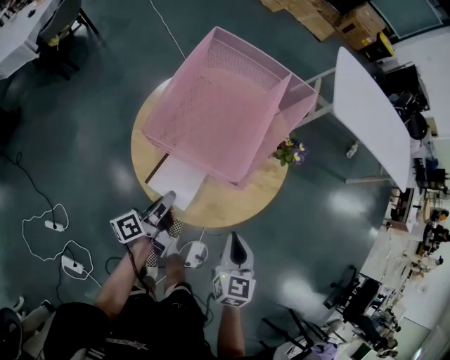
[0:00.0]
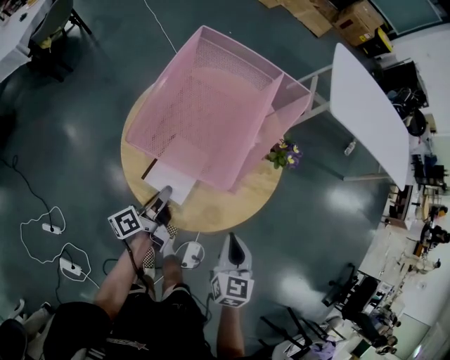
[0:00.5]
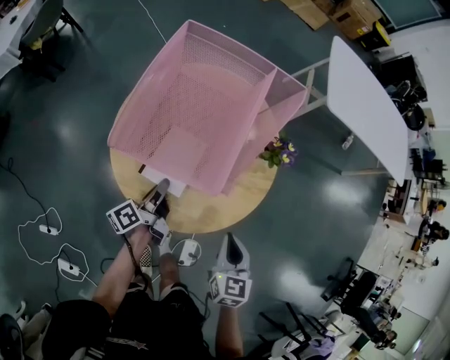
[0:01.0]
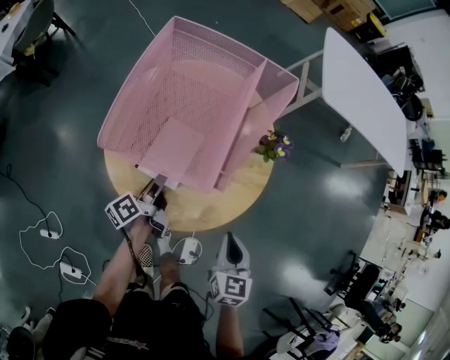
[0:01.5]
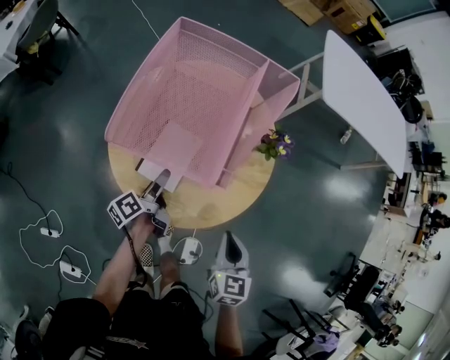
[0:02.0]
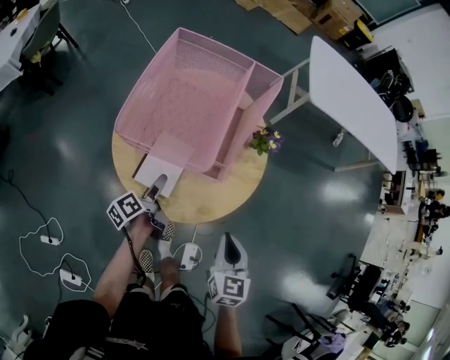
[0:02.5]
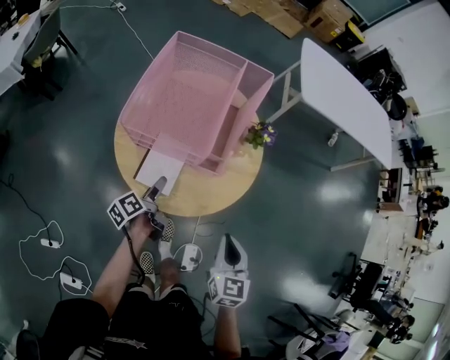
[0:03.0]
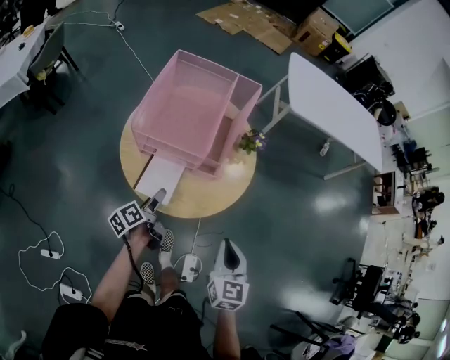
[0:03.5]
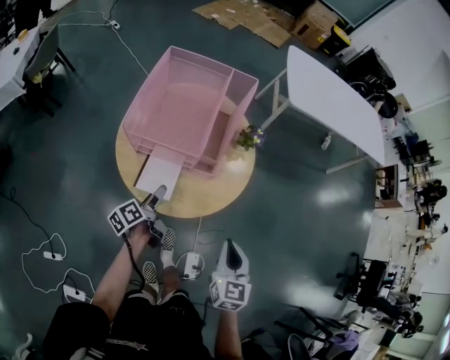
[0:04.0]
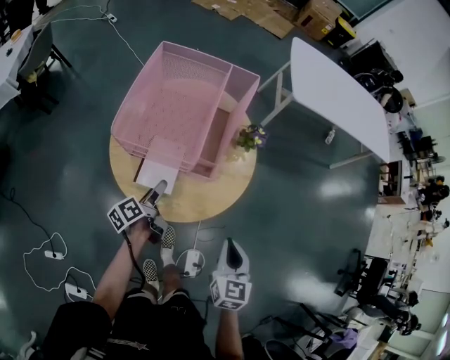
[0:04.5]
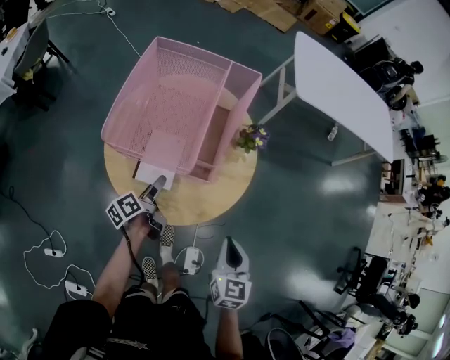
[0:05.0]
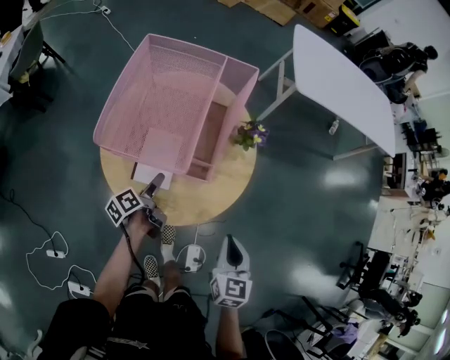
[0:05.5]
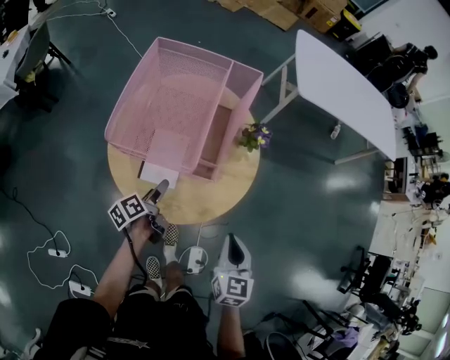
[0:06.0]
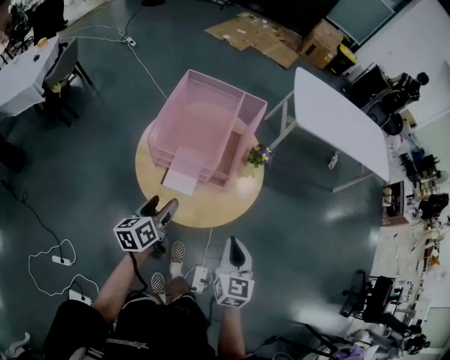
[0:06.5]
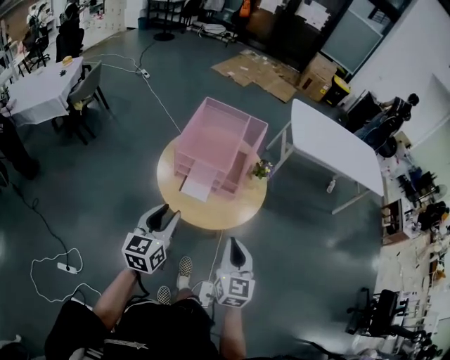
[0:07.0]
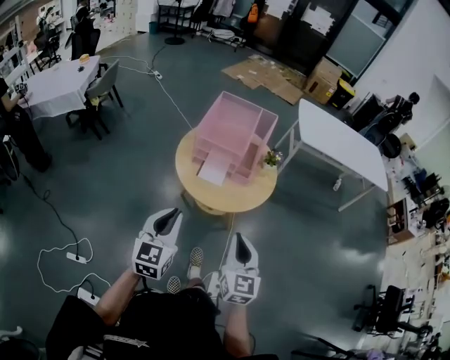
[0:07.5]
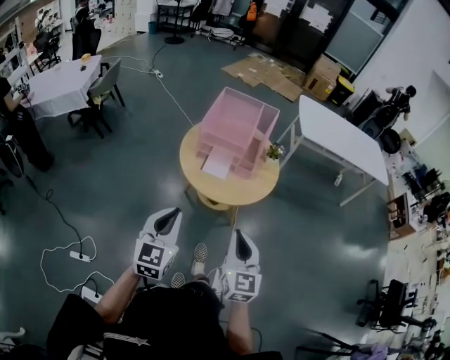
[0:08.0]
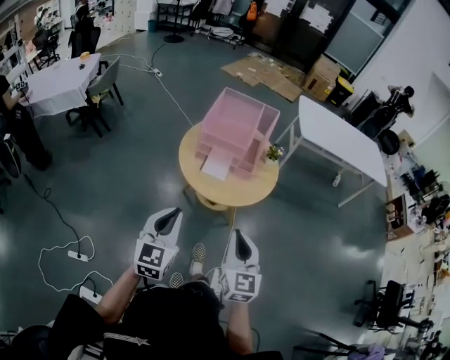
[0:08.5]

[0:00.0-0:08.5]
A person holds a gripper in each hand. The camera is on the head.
0:00.0 to 0:02.0: The left gripper goes approximately 10 cm downward and forward, and opens its fingers.
0:02.0 to 0:04.0: The two grippers go roughly 10 cm backward and upward.
0:04.0 to 0:06.5: The right gripper ends up approximately 5 cm from where it was. The left gripper moves upward, about 10 cm, and changes its angle by about 30 degrees.
0:06.5 to 0:08.5: The right gripper travels backward, upward and to the left by approximately 25 cm. Meanwhile the left gripper shifts approximately 30 cm backward and upward, rolls clockwise, seen from behind, by some 40 degrees, and closes.

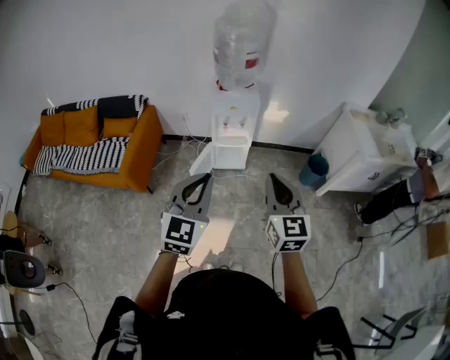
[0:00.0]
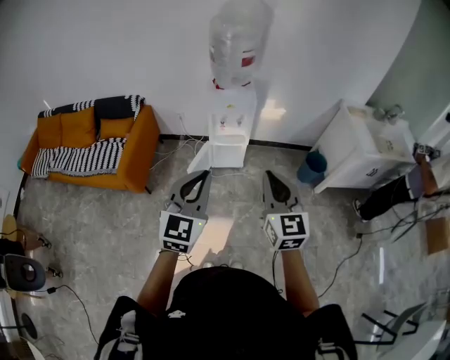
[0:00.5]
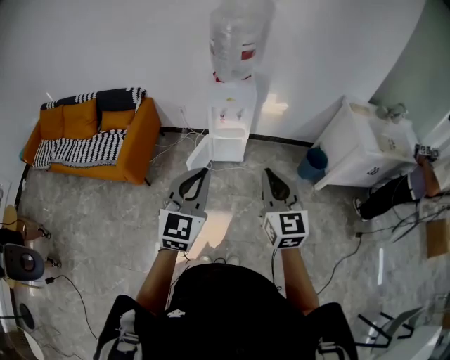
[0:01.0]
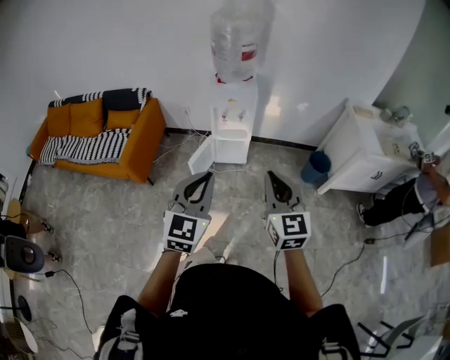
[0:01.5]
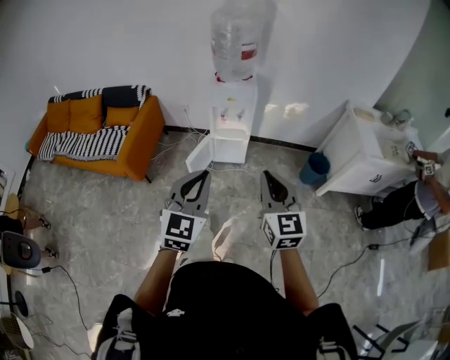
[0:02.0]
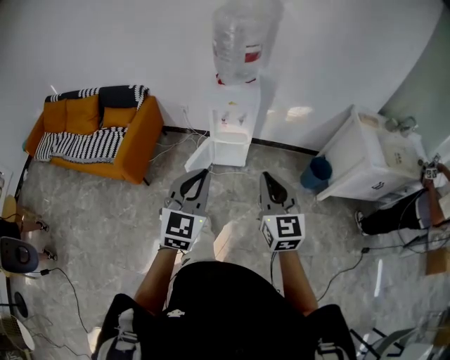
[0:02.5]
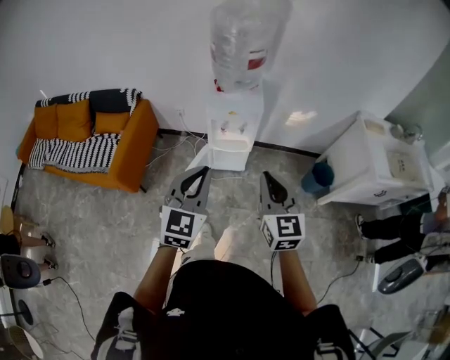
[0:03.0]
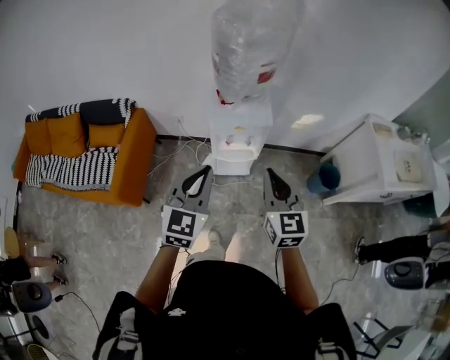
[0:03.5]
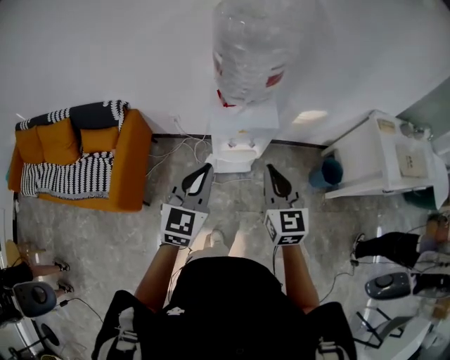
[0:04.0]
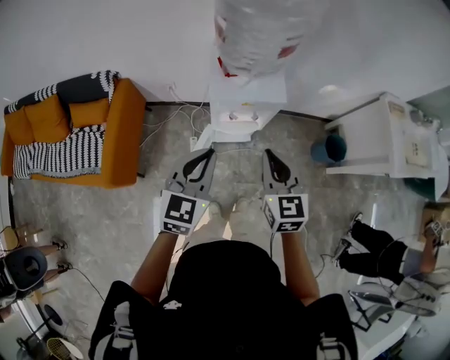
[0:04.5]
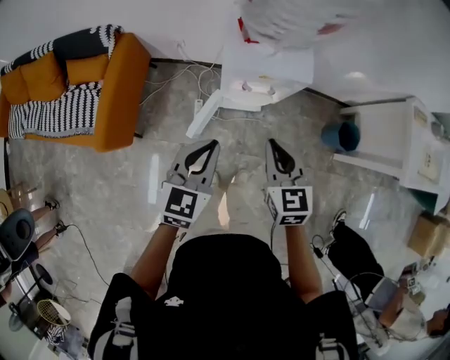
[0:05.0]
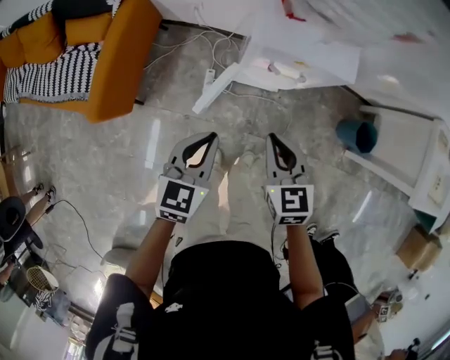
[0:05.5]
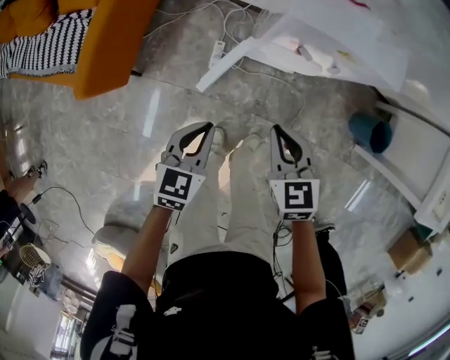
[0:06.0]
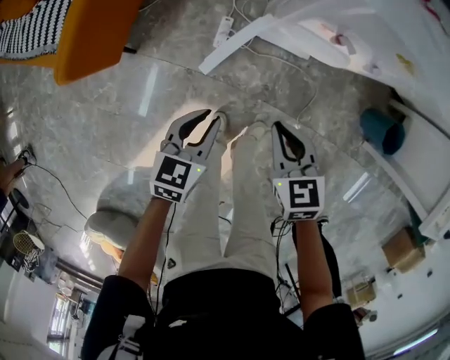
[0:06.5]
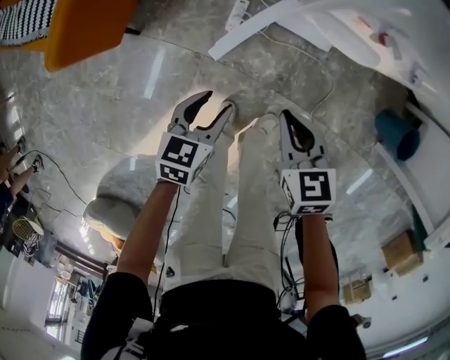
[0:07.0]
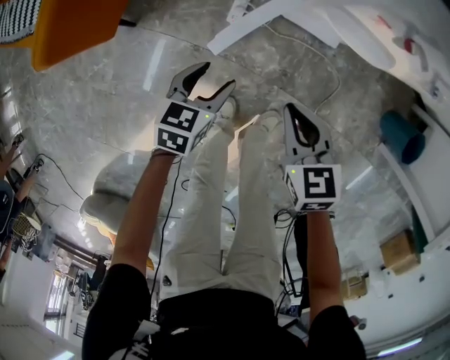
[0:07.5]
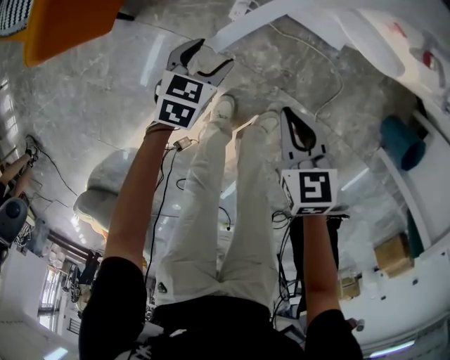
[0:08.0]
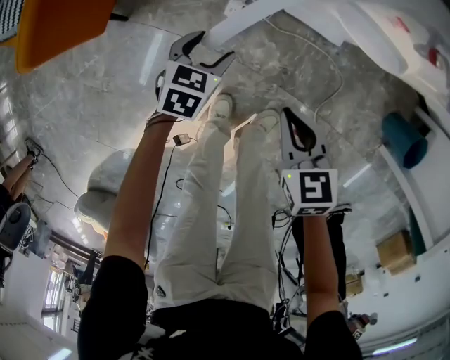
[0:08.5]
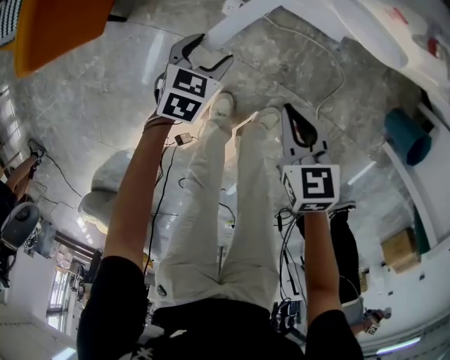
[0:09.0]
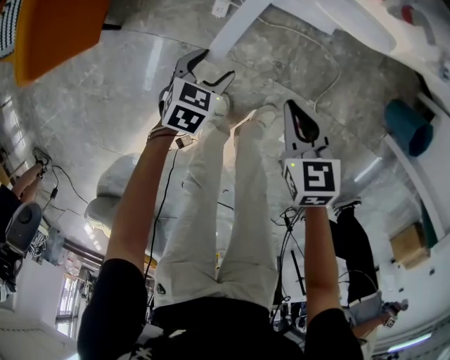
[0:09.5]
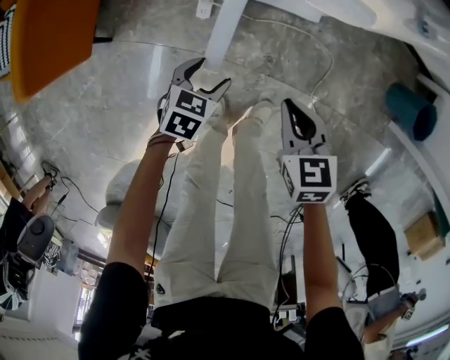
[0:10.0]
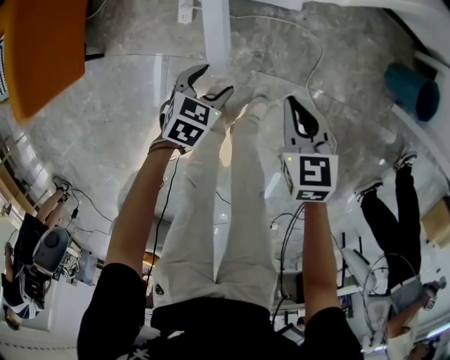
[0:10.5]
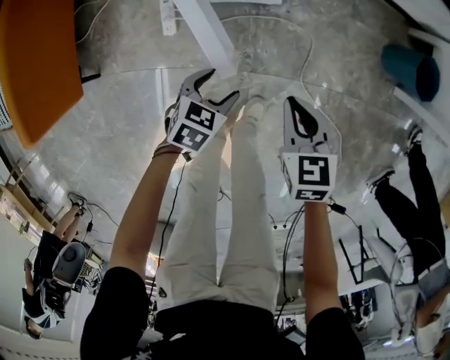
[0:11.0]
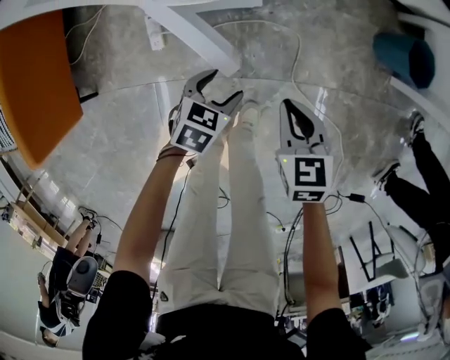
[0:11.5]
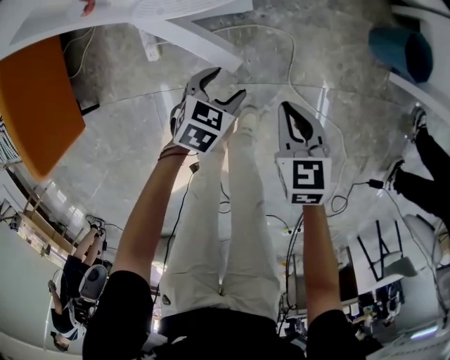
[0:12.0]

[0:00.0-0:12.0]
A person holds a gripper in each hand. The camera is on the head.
0:00.0 to 0:02.0: The right gripper changes place by approximately 5 cm. The left gripper moves to the right, about 5 cm.
0:02.0 to 0:04.0: The two grippers go some 40 cm forward.
0:04.0 to 0:06.0: The two grippers go some 35 cm downward. The right gripper rotates some 40 degrees. The left gripper turns by roughly 30 degrees.
0:06.0 to 0:08.0: Both grippers move downward, about 25 cm. The left gripper opens its fingers.
0:08.0 to 0:10.0: The right gripper shifts about 10 cm to the right; the left gripper travels to the right and backward by approximately 10 cm.
0:10.0 to 0:12.0: The right gripper is displaced to the right by about 15 cm. The left gripper shifts some 20 cm to the right and forward, and turns by roughly 20 degrees.

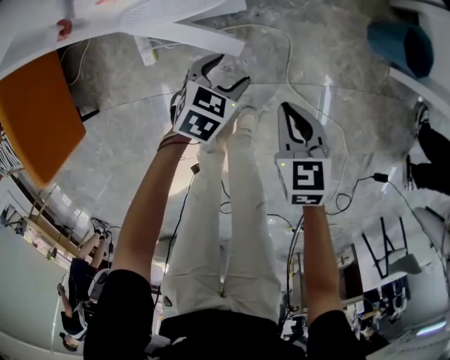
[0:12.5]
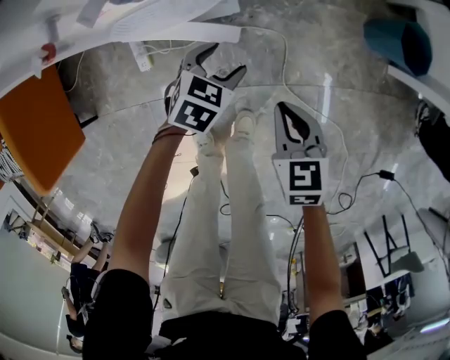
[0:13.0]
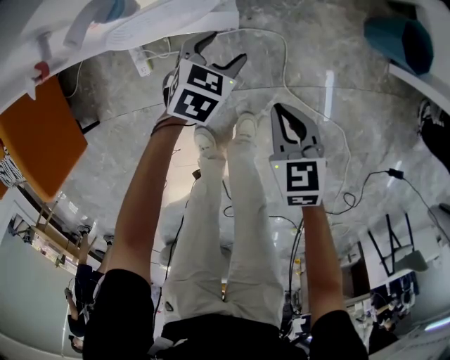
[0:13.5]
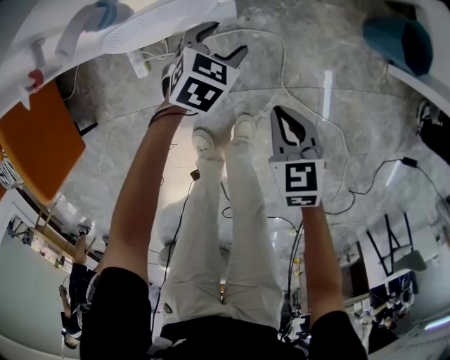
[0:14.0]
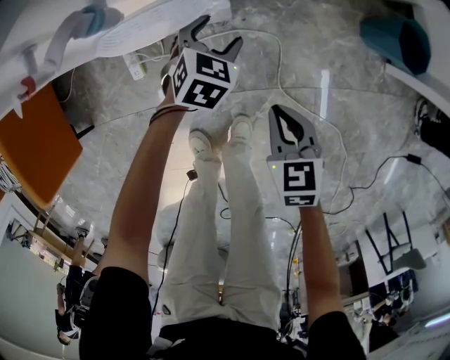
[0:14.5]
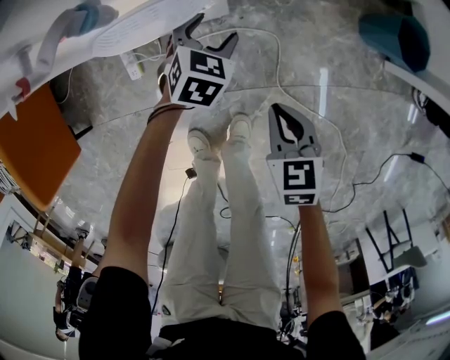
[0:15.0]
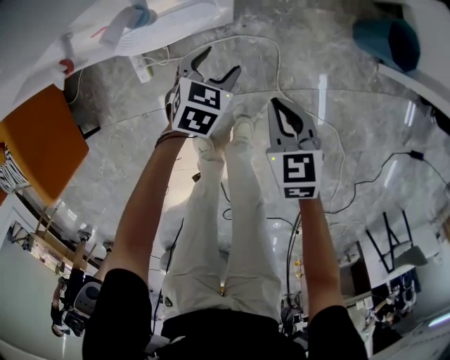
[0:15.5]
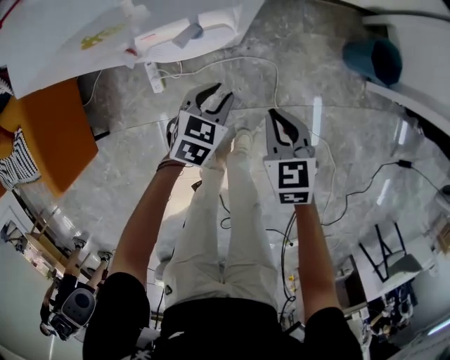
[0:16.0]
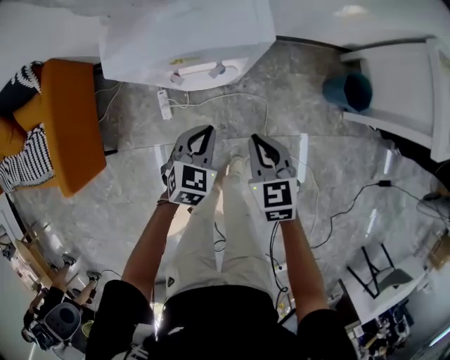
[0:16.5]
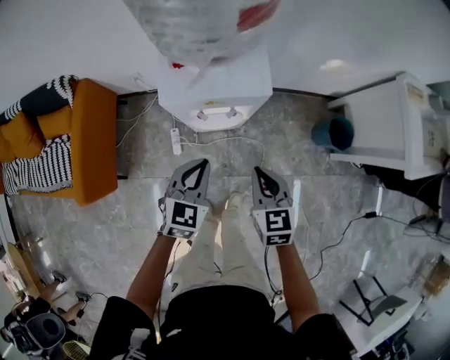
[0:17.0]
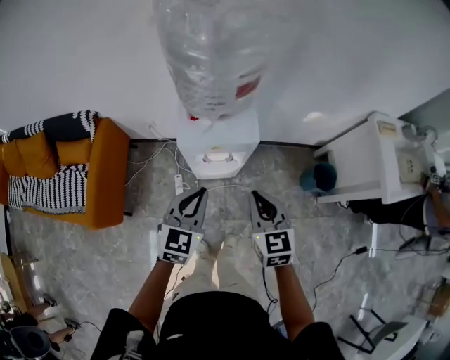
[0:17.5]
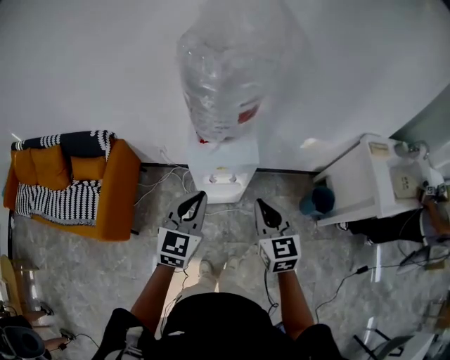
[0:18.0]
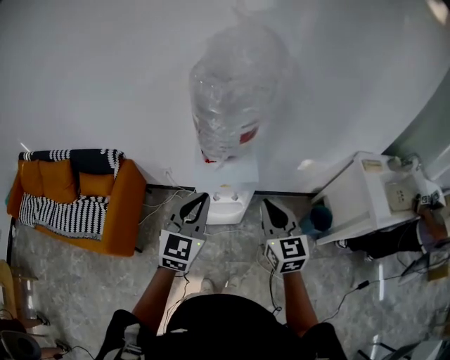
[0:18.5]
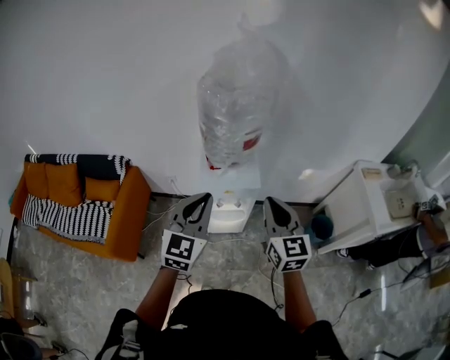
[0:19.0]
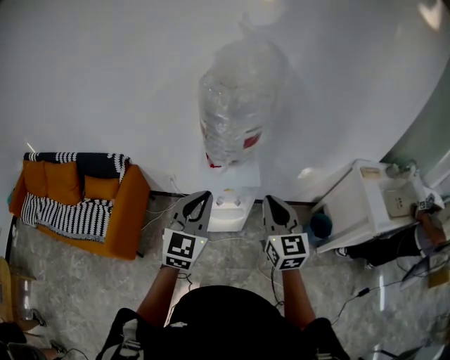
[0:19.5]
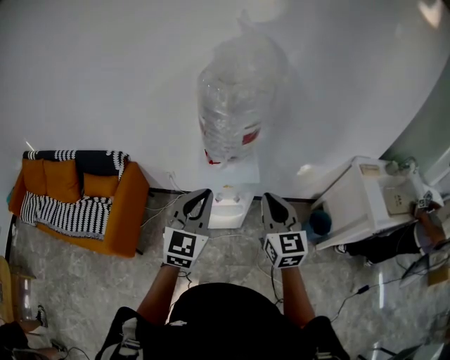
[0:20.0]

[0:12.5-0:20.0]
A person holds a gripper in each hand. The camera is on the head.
0:12.5 to 0:14.5: The left gripper goes some 10 cm forward.
0:14.5 to 0:16.5: The left gripper is displaced upward and backward by approximately 30 cm, and closes its fingers. The right gripper heads upward, covering approximately 25 cm.
0:16.5 to 0:18.0: The grippers both shift upward by some 35 cm. The right gripper changes its angle by some 20 degrees. The left gripper tips its fingers upward by some 30 degrees.
0:18.0 to 0:20.0: Both grippers move upward, approximately 10 cm.
